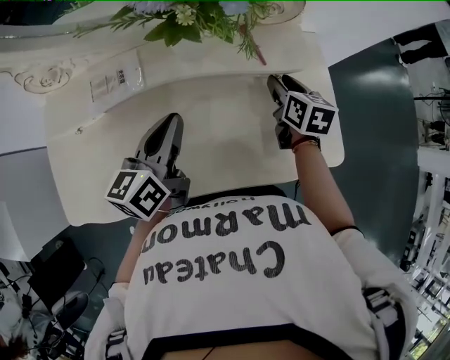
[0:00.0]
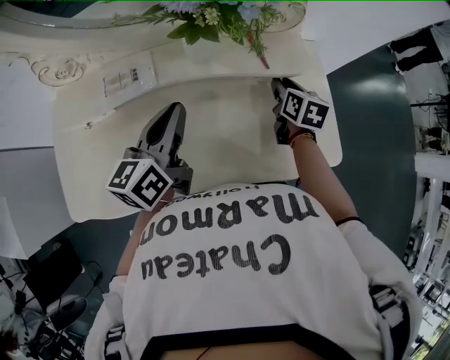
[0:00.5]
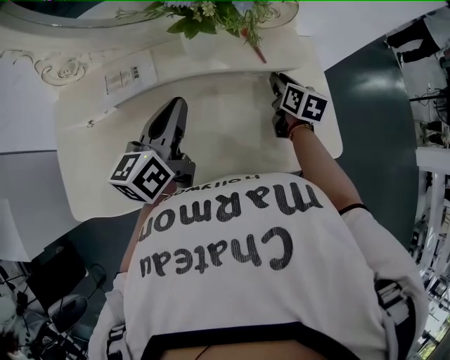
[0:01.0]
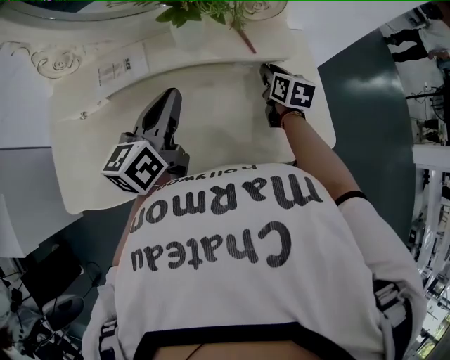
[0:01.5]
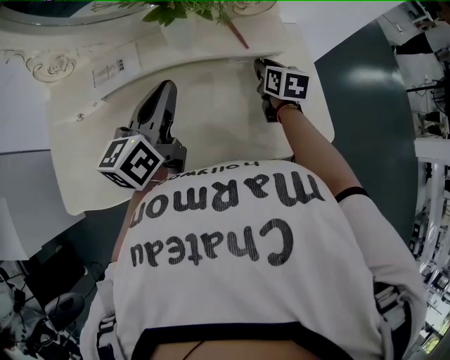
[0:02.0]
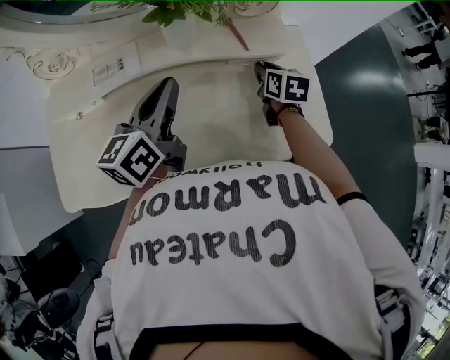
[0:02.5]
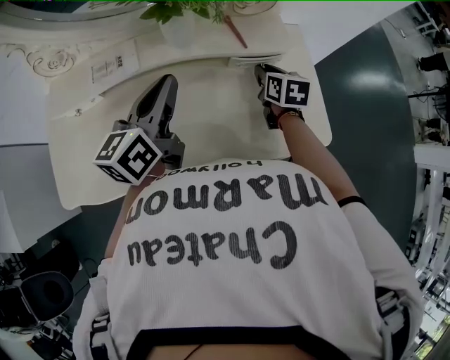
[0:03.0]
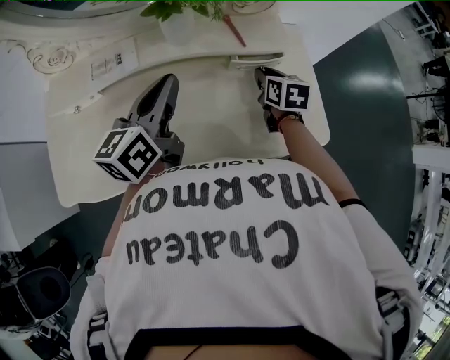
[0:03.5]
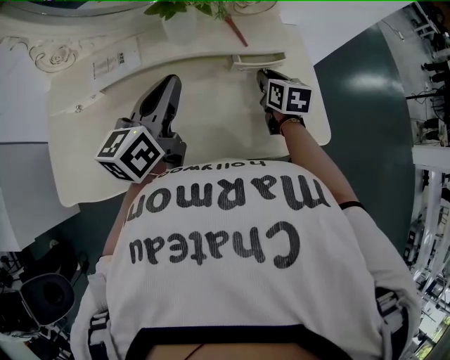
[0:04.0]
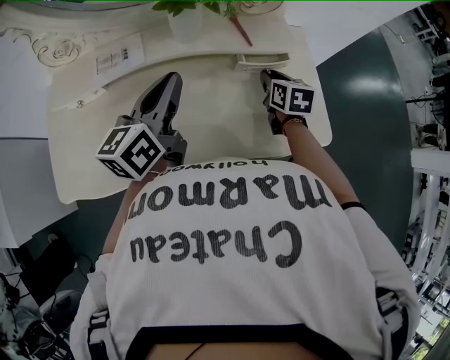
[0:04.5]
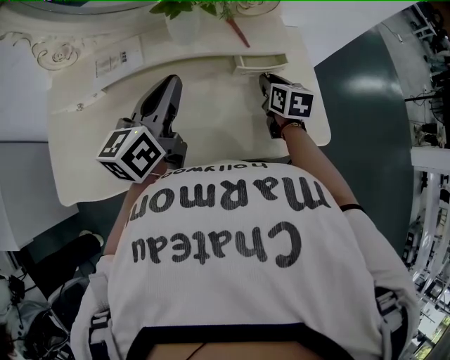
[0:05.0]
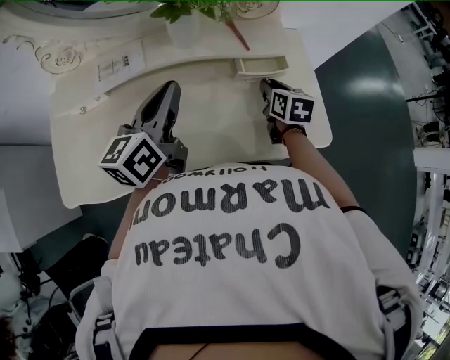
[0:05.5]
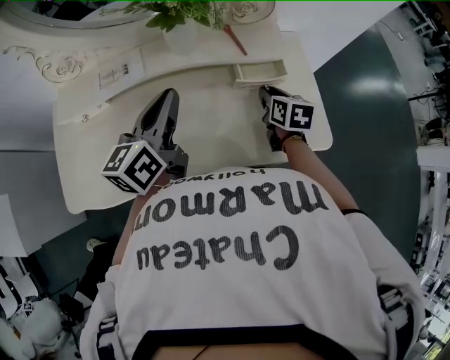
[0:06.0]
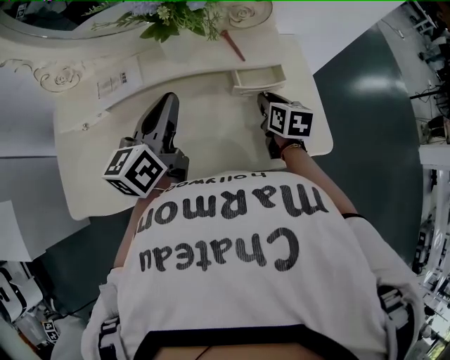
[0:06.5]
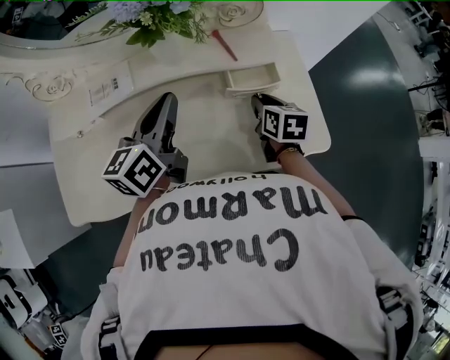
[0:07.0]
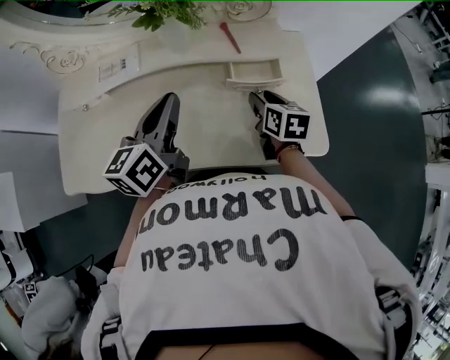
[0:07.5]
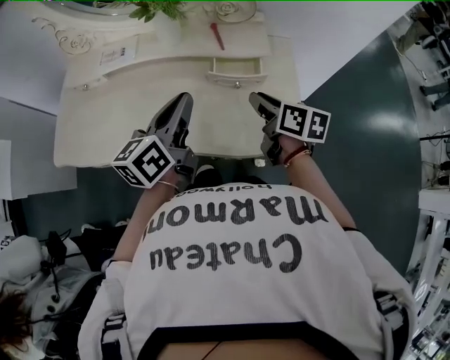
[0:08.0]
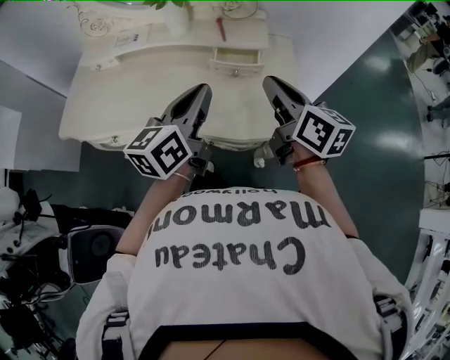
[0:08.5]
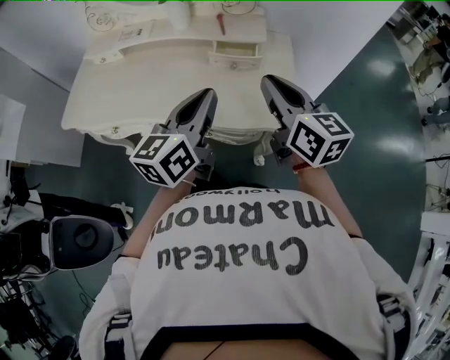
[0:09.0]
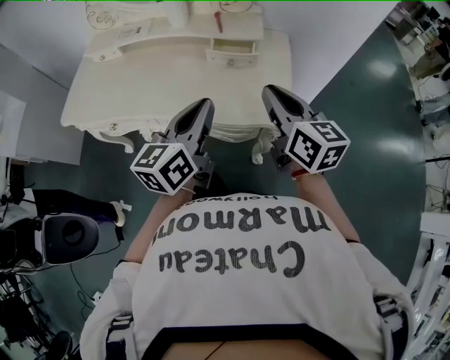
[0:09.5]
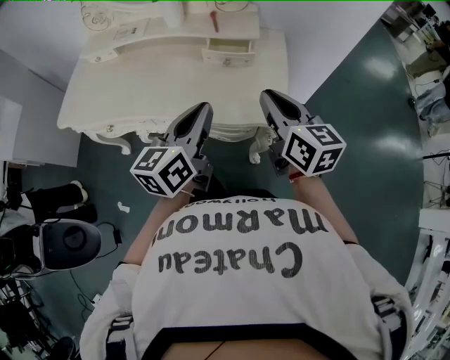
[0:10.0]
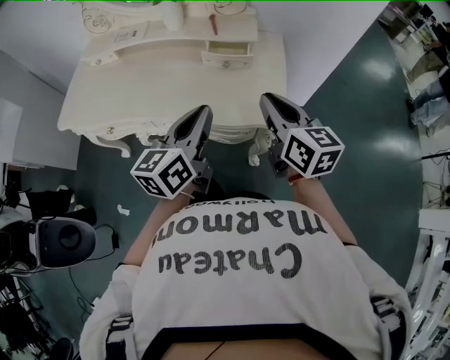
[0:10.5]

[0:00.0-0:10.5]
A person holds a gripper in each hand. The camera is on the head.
0:00.0 to 0:02.0: The left gripper moves upward, some 5 cm.
0:02.0 to 0:04.0: The grippers make only small movements.
0:04.0 to 0:06.5: The grippers move only a little.
0:06.5 to 0:08.5: The left gripper travels to the right and backward by about 25 cm. The right gripper is displaced upward and backward by about 20 cm, and angles its fingers upward, by some 30 degrees.
0:08.5 to 0:10.5: The two grippers go about 10 cm backward.

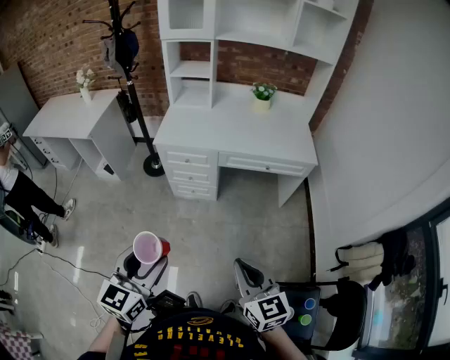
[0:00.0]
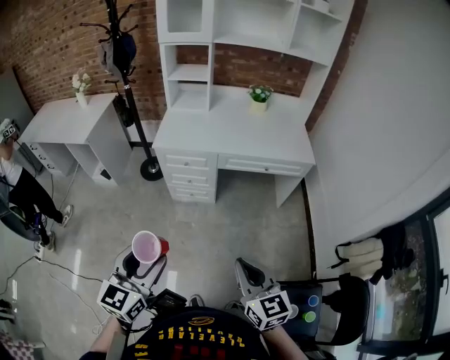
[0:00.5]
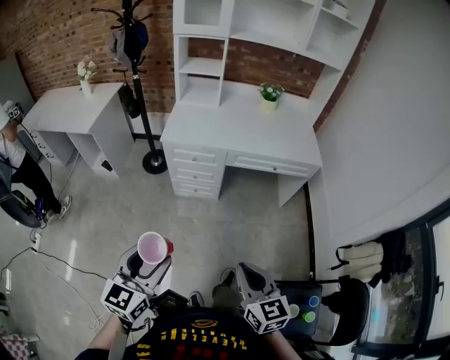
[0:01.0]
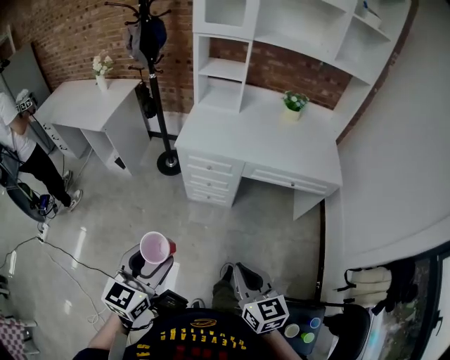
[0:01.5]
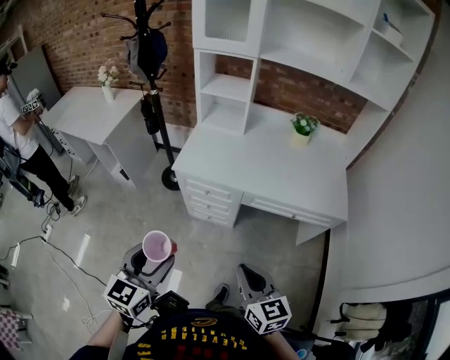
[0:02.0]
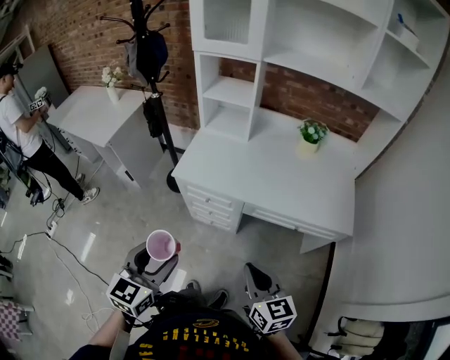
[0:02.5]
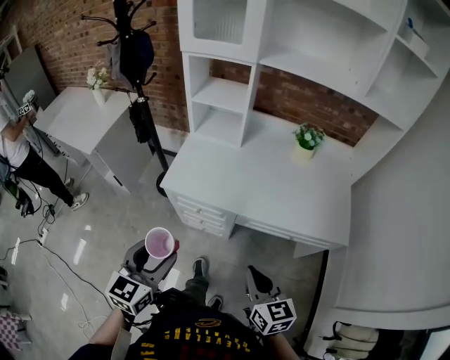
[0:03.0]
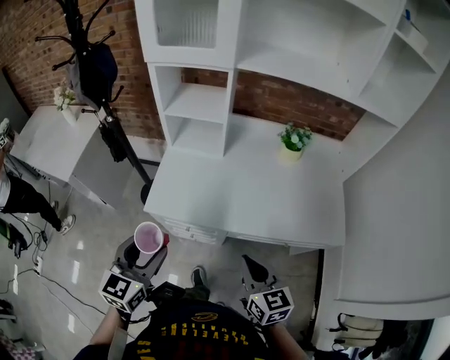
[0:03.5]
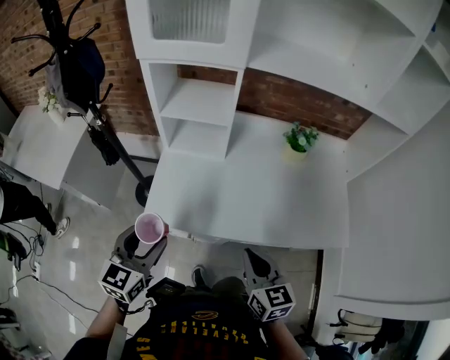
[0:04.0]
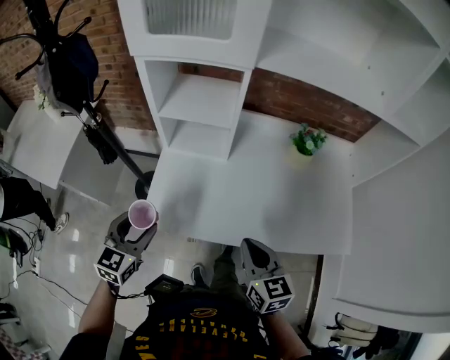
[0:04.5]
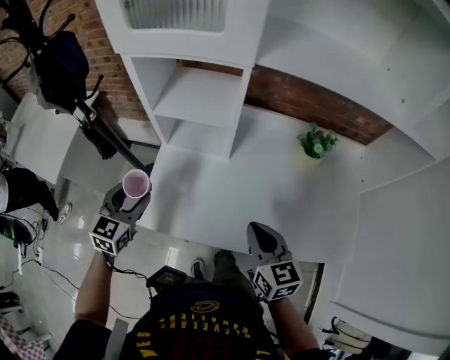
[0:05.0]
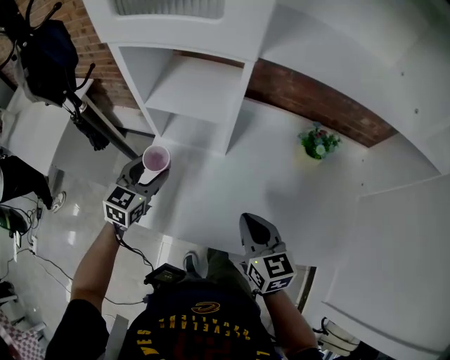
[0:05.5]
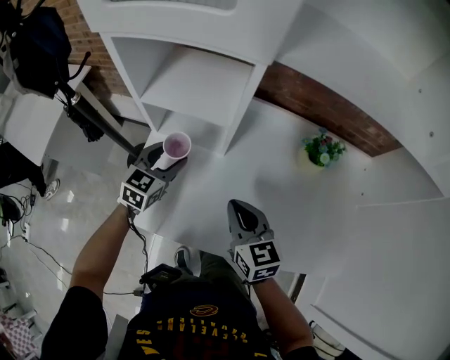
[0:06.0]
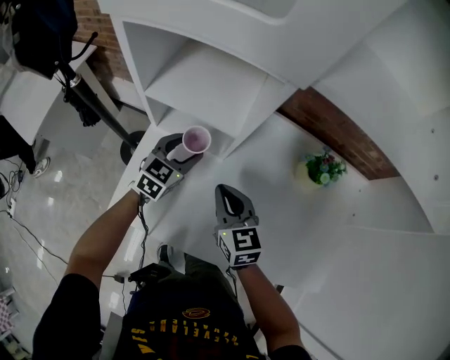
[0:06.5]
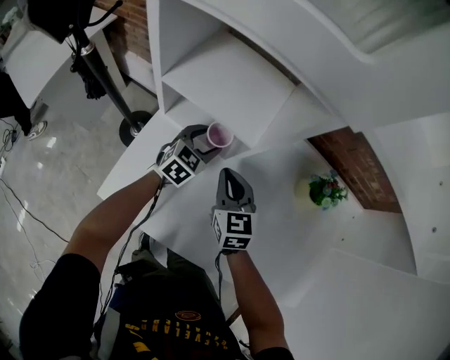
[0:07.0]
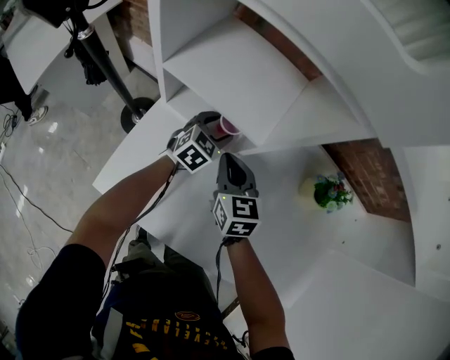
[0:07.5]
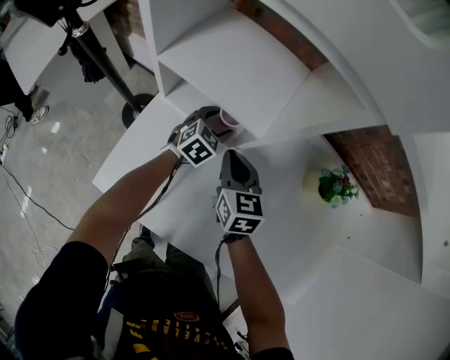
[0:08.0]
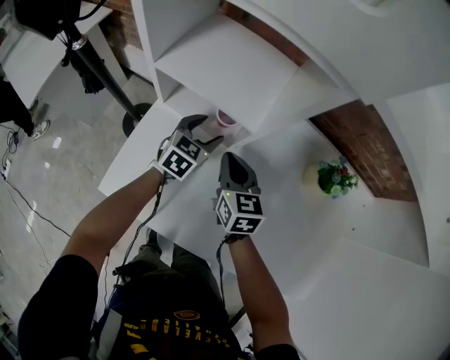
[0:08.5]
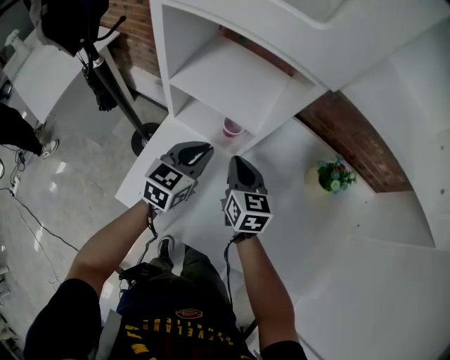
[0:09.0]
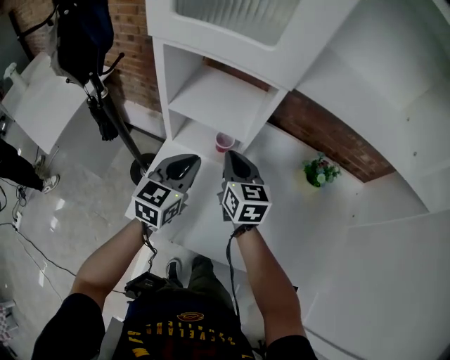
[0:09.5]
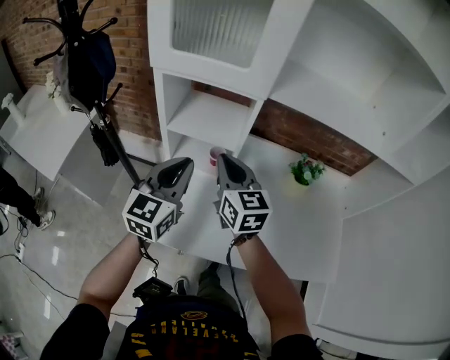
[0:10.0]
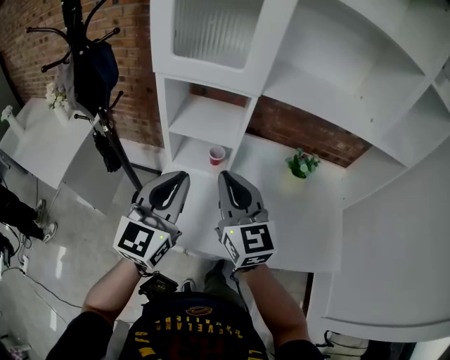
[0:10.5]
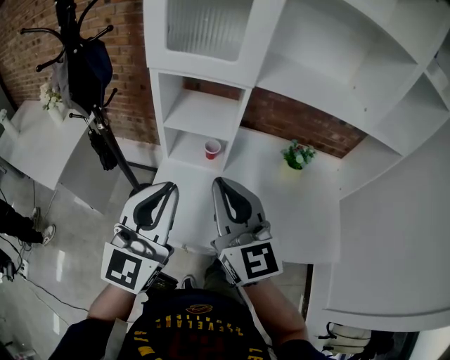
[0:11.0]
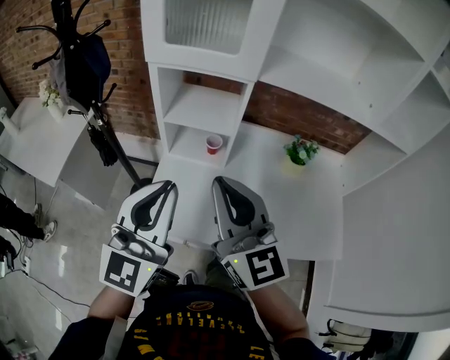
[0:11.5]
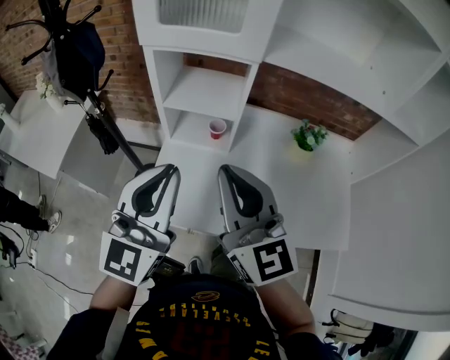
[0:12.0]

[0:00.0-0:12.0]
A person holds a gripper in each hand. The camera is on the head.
0:00.0 to 0:02.0: The grippers both shift forward by roughly 20 cm.
0:02.0 to 0:04.0: Both grippers travel together forward, about 35 cm.
0:04.0 to 0:06.0: The left gripper travels forward and downward by about 35 cm. Meanwhile the right gripper travels forward by about 25 cm.
0:06.0 to 0:08.0: The left gripper is displaced downward, forward and to the right by approximately 20 cm. The right gripper travels forward and downward by roughly 20 cm.
0:08.0 to 0:10.0: The left gripper goes about 40 cm upward and backward, angles its fingers upward, by roughly 40 degrees, and closes up, while the right gripper travels upward by roughly 25 cm, and changes its angle by roughly 20 degrees.
0:10.0 to 0:12.0: Both grippers travel together backward and upward, about 20 cm.

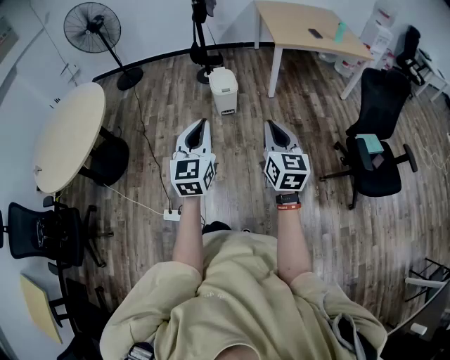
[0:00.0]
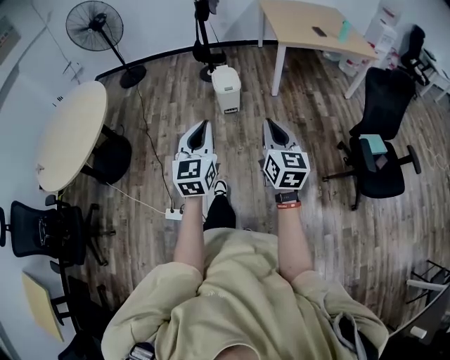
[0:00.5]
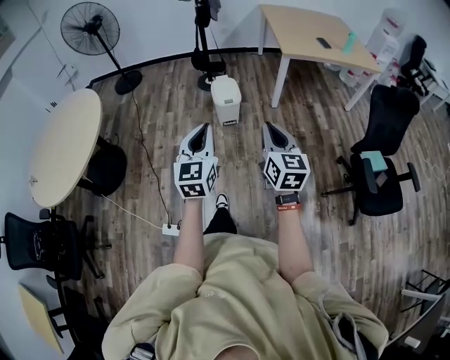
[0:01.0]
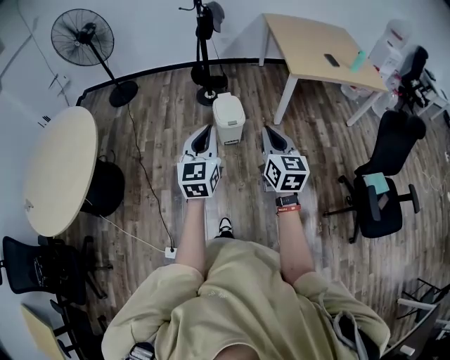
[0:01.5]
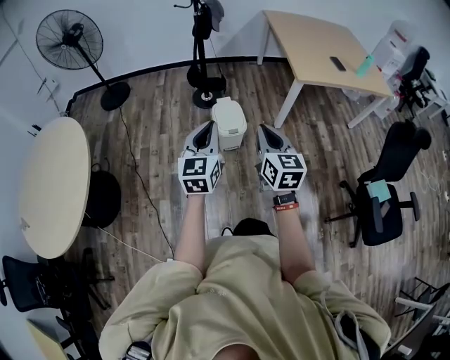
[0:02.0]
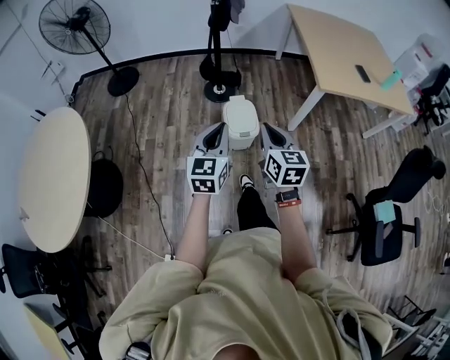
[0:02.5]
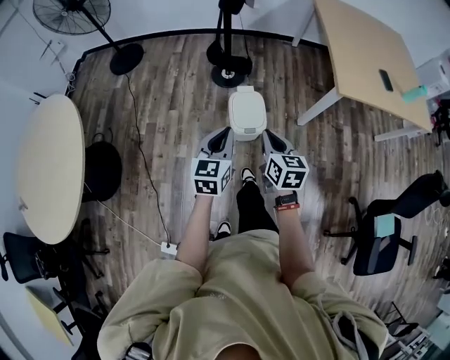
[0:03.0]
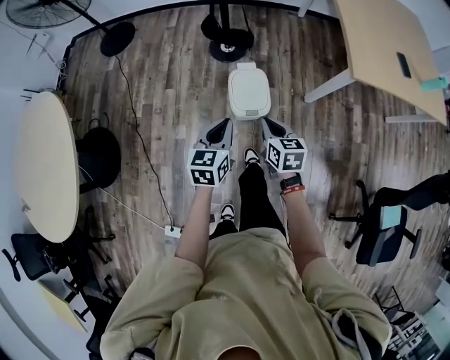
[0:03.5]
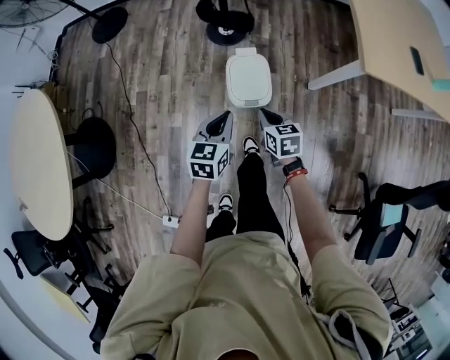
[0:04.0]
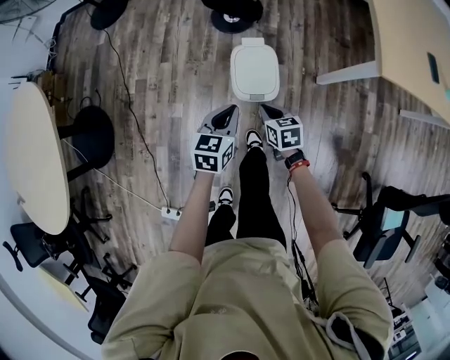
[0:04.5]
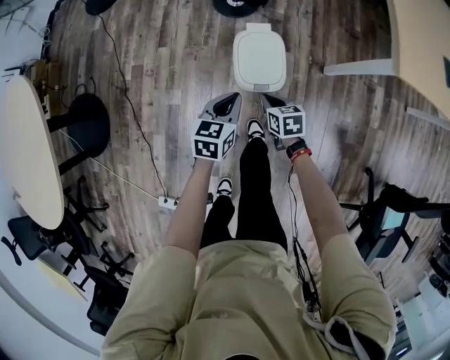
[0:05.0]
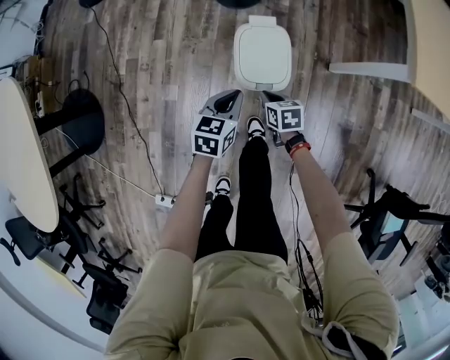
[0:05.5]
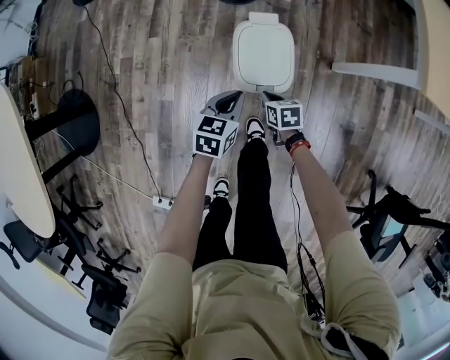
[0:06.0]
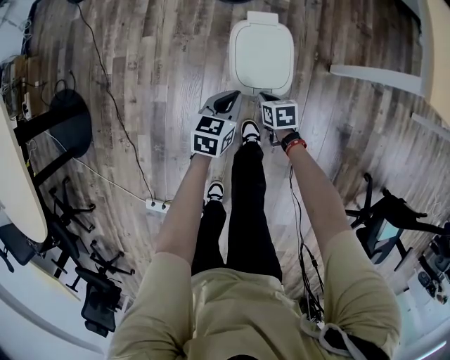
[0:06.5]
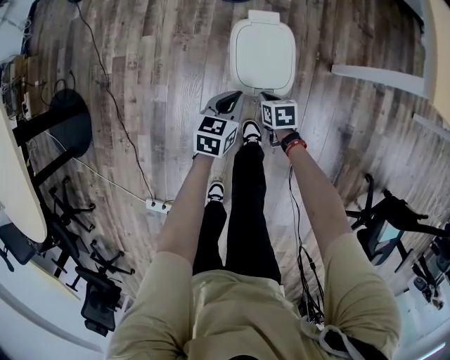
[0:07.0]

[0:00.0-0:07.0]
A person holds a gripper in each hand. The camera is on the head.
0:00.0 to 0:02.0: The two grippers travel together, forward, about 50 cm.
0:02.0 to 0:03.5: Both grippers move forward and downward, roughly 40 cm. The right gripper turns by approximately 30 degrees. The left gripper changes its angle by roughly 30 degrees.
0:03.5 to 0:05.0: The left gripper travels downward and forward by roughly 25 cm, while the right gripper shifts approximately 25 cm downward, and changes its angle by approximately 20 degrees.
0:05.0 to 0:07.0: The grippers both shift downward by about 20 cm.
